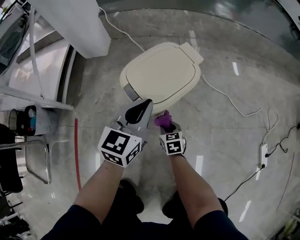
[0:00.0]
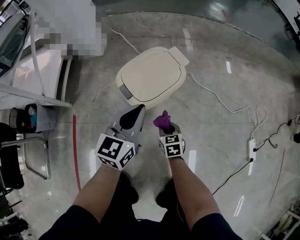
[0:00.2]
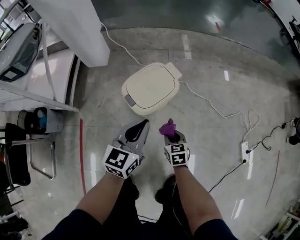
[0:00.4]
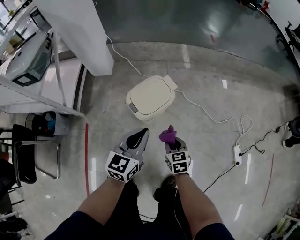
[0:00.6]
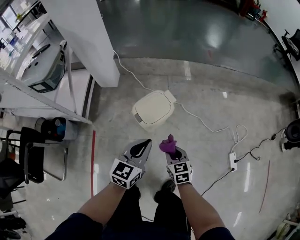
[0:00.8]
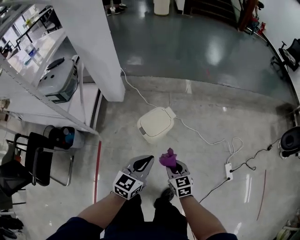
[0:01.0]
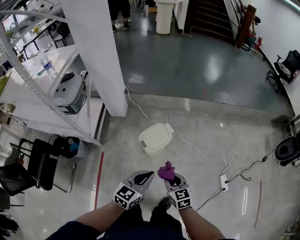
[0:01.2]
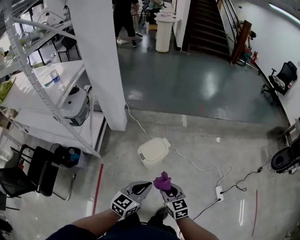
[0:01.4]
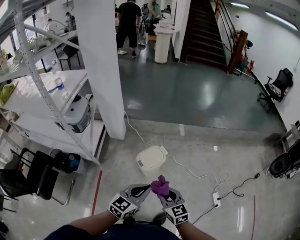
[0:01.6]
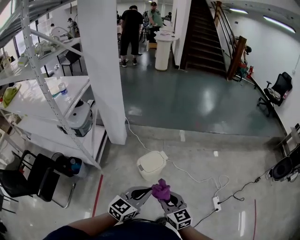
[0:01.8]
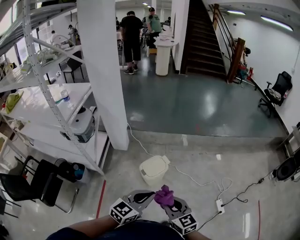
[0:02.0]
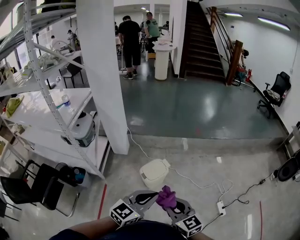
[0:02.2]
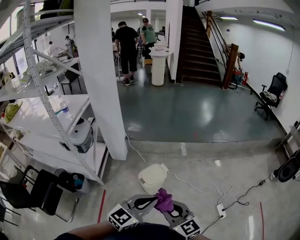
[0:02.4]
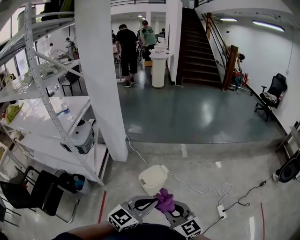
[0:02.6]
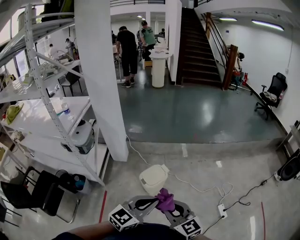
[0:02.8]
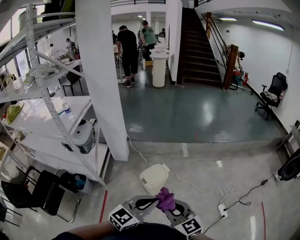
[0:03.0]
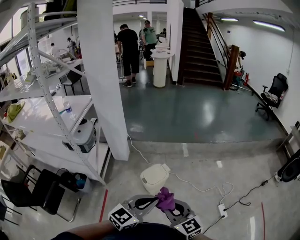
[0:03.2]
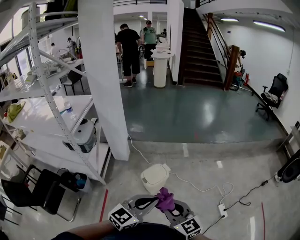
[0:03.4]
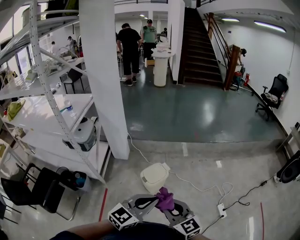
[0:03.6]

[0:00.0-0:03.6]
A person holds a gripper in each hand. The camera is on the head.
0:00.0 to 0:01.8: The left gripper moves upward and backward, roughly 70 cm. Meanwhile the right gripper is displaced upward by about 90 cm, and rotates roughly 30 degrees.
0:01.8 to 0:03.6: Both grippers travel together upward and backward, roughly 10 cm.

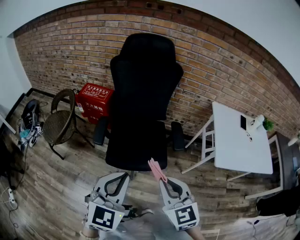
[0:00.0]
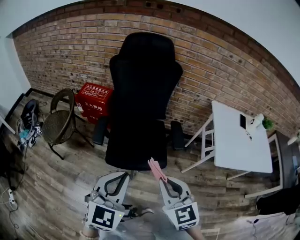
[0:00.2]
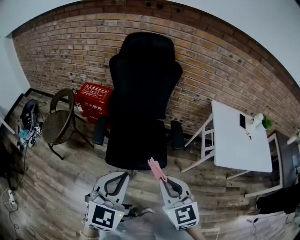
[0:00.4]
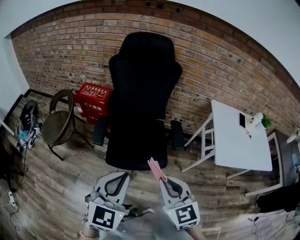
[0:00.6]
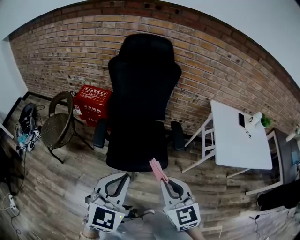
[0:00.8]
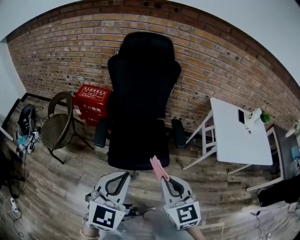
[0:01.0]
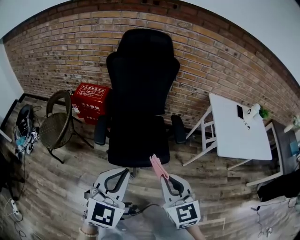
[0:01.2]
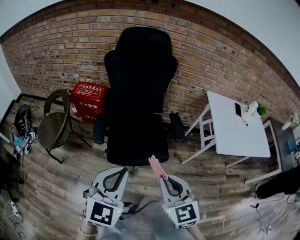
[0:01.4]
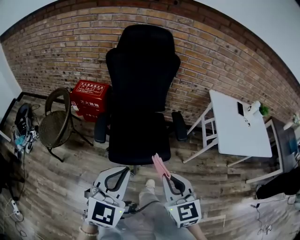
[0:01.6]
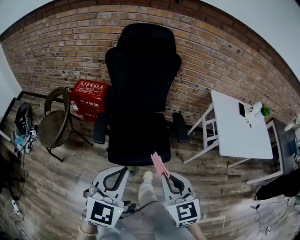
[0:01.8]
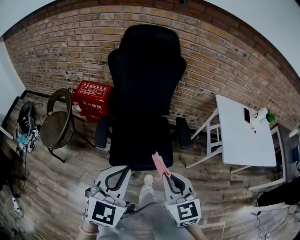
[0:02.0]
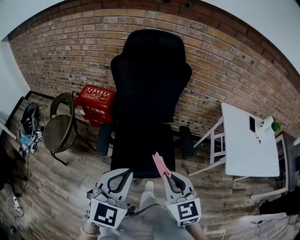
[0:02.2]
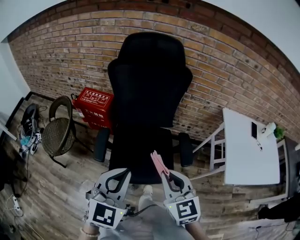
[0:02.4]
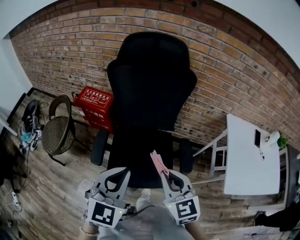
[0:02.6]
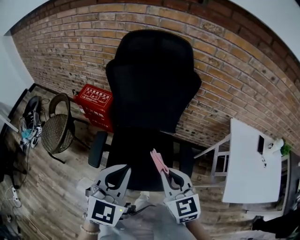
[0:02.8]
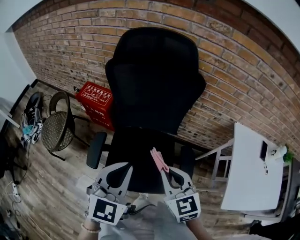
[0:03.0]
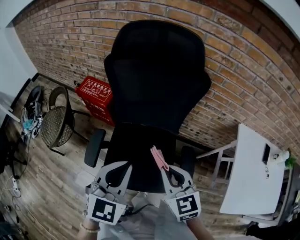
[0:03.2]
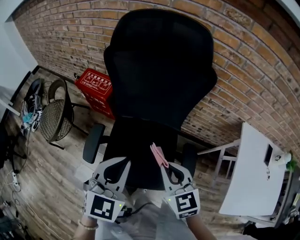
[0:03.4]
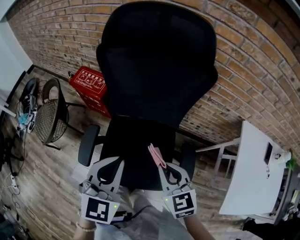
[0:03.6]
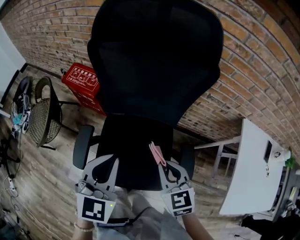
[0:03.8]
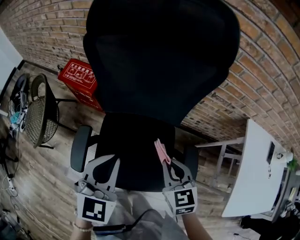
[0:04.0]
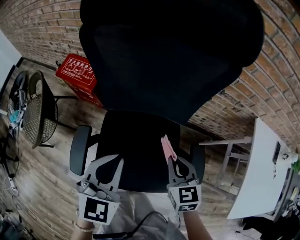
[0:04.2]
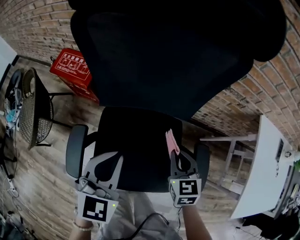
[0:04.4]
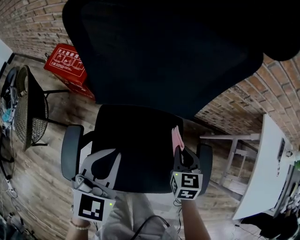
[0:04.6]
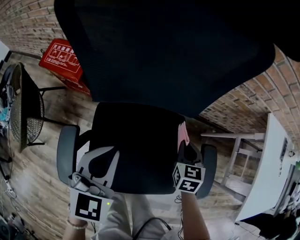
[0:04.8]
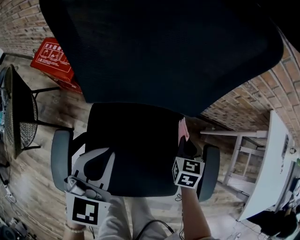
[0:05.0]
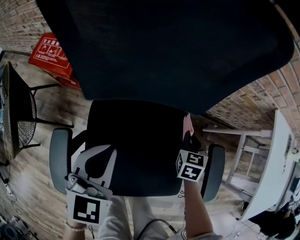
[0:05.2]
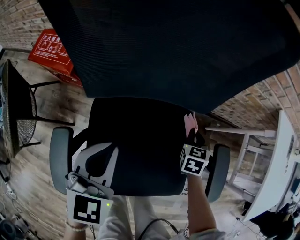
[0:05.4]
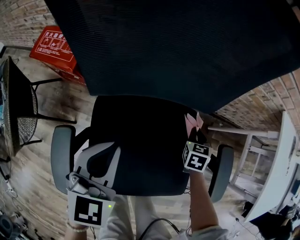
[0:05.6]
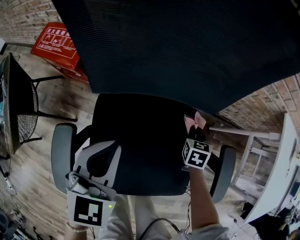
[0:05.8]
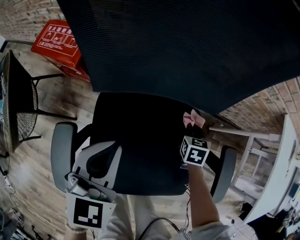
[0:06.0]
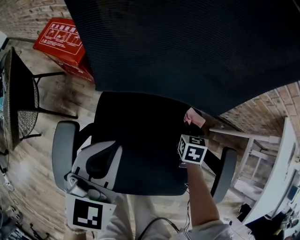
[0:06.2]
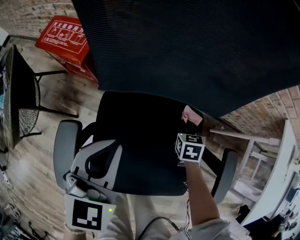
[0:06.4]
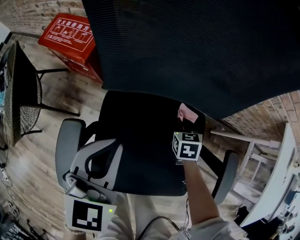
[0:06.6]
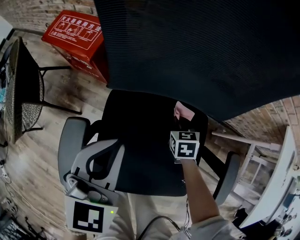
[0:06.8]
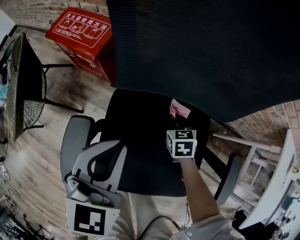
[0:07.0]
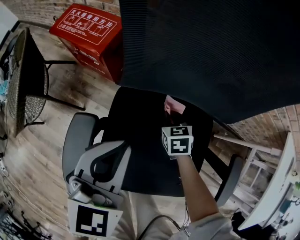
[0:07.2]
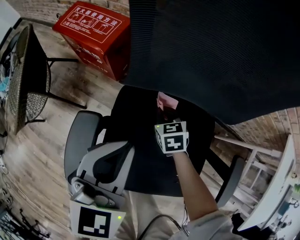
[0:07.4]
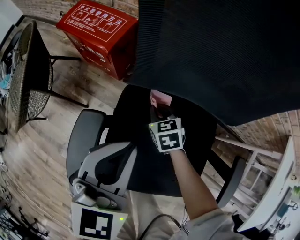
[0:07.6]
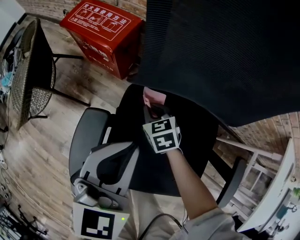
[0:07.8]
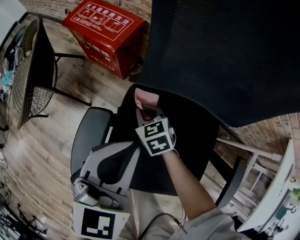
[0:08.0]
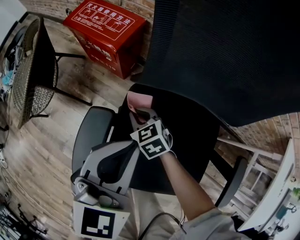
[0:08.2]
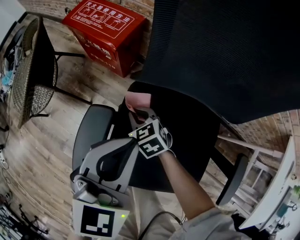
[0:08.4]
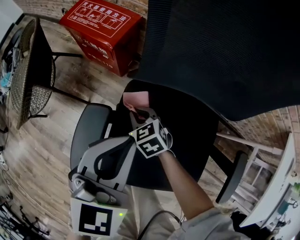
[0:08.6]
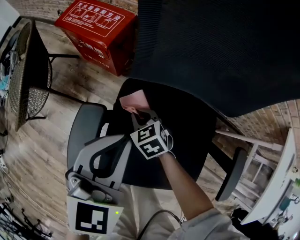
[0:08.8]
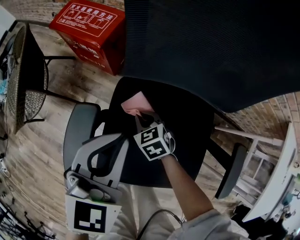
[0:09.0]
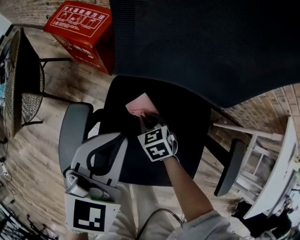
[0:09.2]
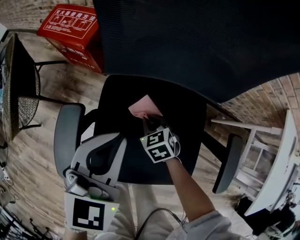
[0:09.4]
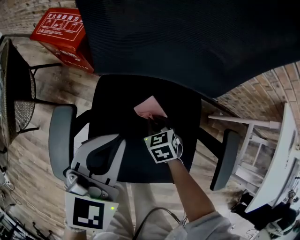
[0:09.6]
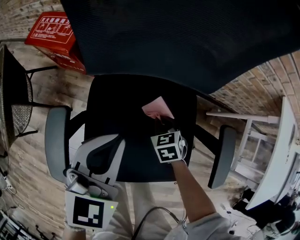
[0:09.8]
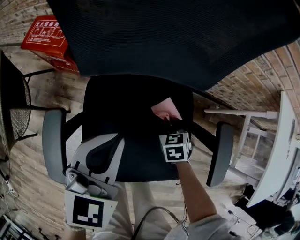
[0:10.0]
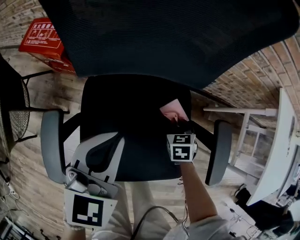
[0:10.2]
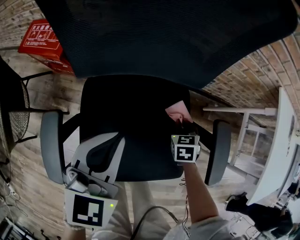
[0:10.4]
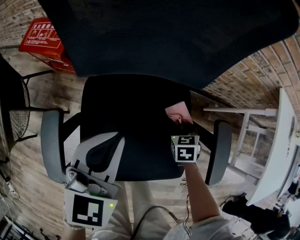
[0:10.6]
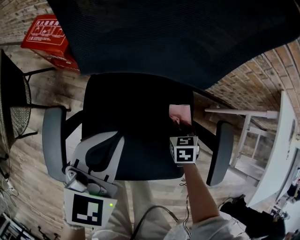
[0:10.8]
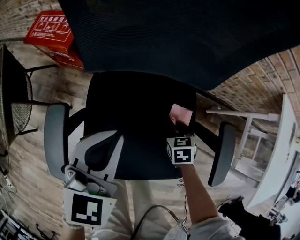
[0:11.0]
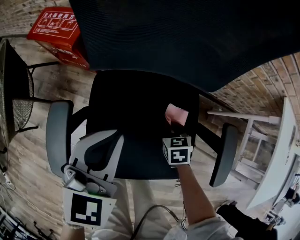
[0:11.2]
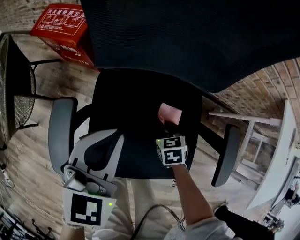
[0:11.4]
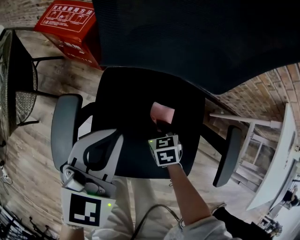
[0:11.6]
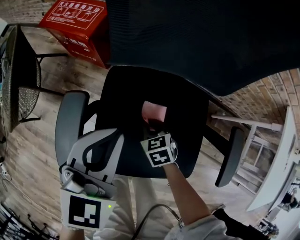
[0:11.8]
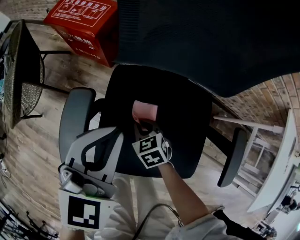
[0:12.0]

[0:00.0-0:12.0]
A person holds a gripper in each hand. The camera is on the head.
0:00.0 to 0:01.6: The grippers both shift to the left by roughly 5 cm.
0:01.6 to 0:03.0: The grippers both shift forward by roughly 35 cm.
0:03.0 to 0:04.4: Both grippers travel together downward and forward, approximately 30 cm. The right gripper swivels roughly 20 degrees.
0:04.4 to 0:06.0: The left gripper goes some 15 cm downward and to the left; the right gripper heads downward and forward, covering roughly 30 cm, and rotates approximately 30 degrees.
0:06.0 to 0:07.6: The right gripper changes place by some 30 cm, and swivels roughly 40 degrees; the left gripper ends up approximately 10 cm from where it was.
0:07.6 to 0:09.0: The right gripper shifts roughly 5 cm backward.
0:09.0 to 0:10.4: The left gripper shifts by approximately 10 cm. The right gripper shifts by roughly 35 cm, and swivels roughly 40 degrees.
0:10.4 to 0:12.0: The right gripper changes place by some 30 cm, and swivels approximately 40 degrees. Meanwhile the left gripper ends up roughly 10 cm from where it was.

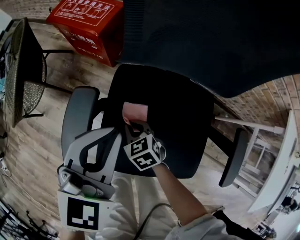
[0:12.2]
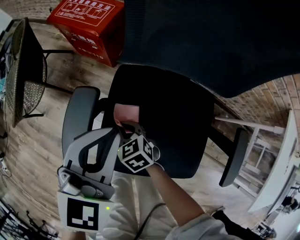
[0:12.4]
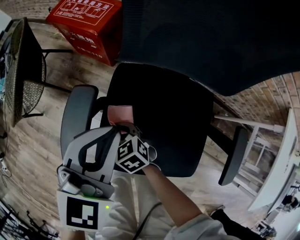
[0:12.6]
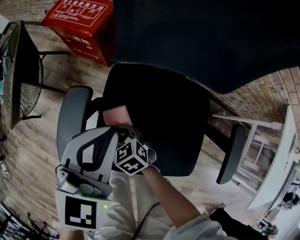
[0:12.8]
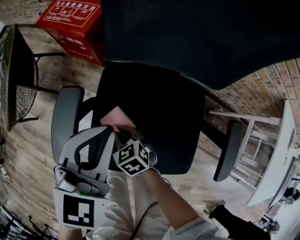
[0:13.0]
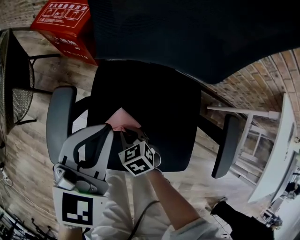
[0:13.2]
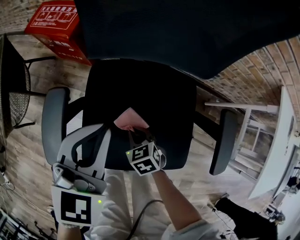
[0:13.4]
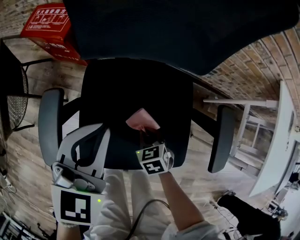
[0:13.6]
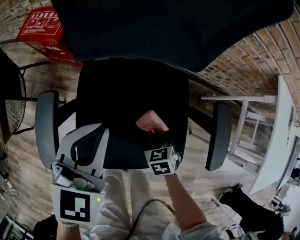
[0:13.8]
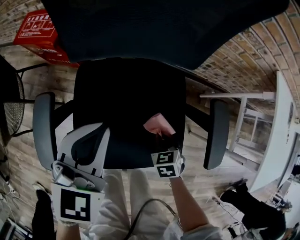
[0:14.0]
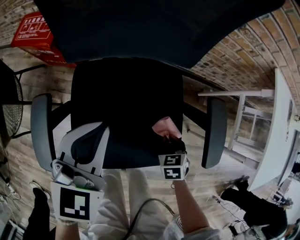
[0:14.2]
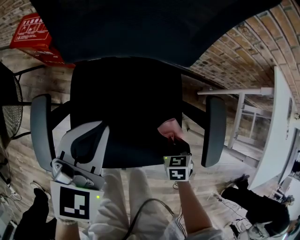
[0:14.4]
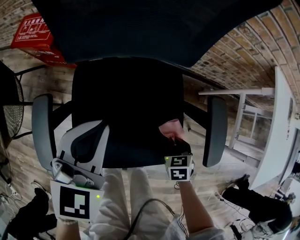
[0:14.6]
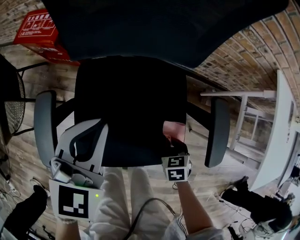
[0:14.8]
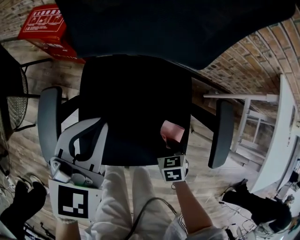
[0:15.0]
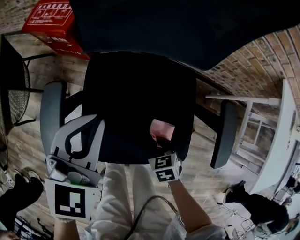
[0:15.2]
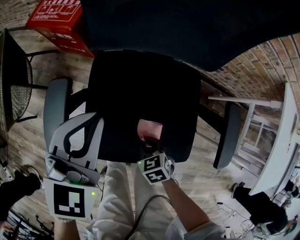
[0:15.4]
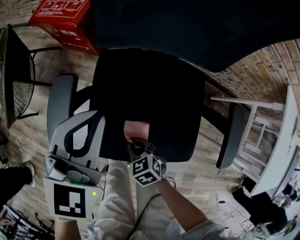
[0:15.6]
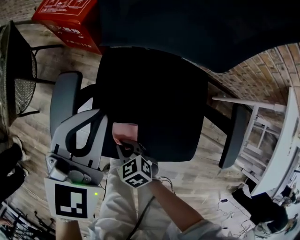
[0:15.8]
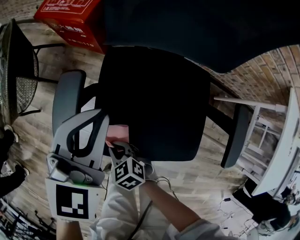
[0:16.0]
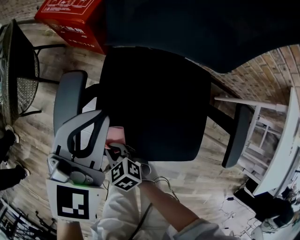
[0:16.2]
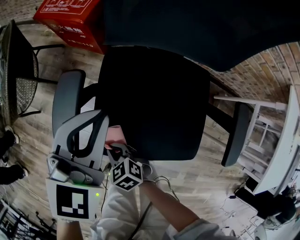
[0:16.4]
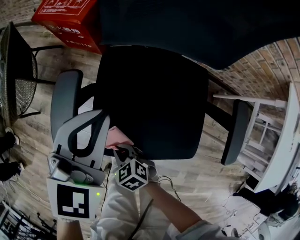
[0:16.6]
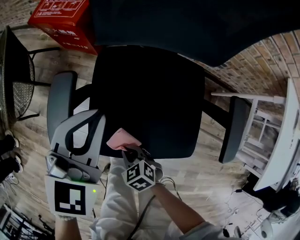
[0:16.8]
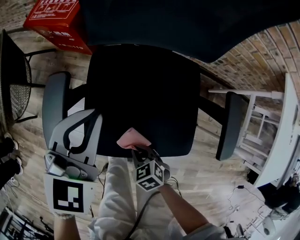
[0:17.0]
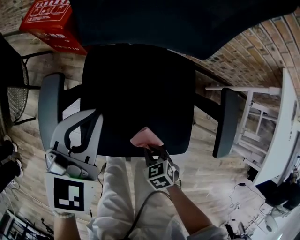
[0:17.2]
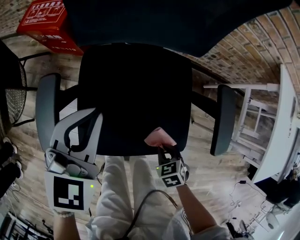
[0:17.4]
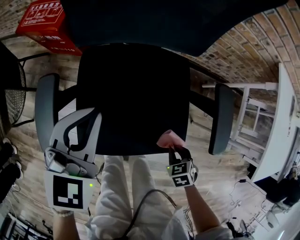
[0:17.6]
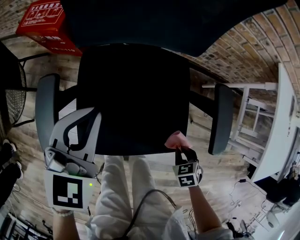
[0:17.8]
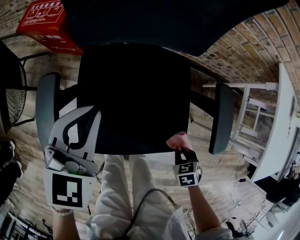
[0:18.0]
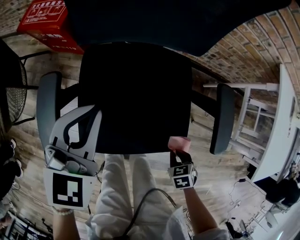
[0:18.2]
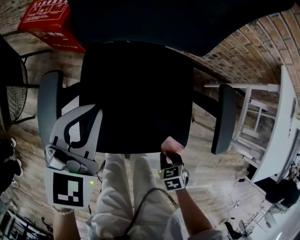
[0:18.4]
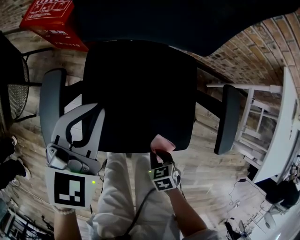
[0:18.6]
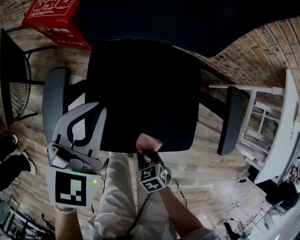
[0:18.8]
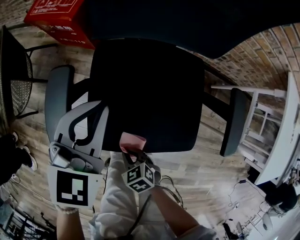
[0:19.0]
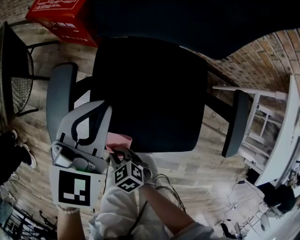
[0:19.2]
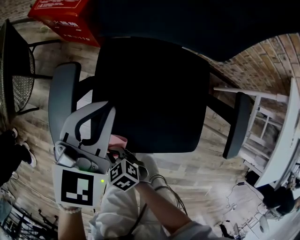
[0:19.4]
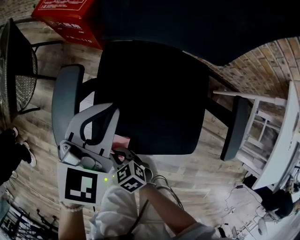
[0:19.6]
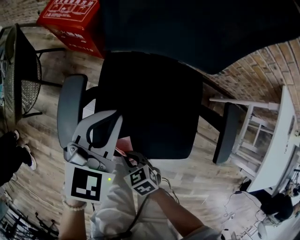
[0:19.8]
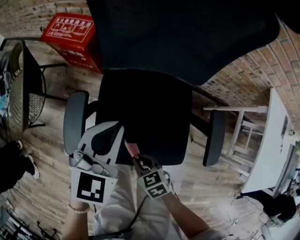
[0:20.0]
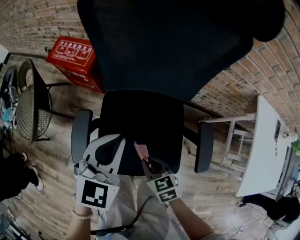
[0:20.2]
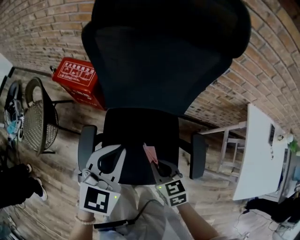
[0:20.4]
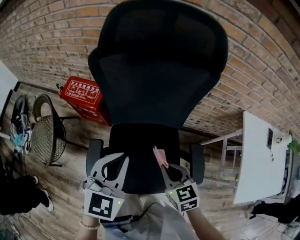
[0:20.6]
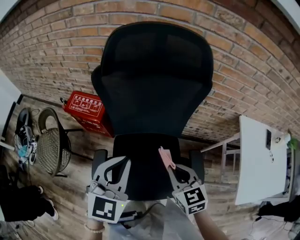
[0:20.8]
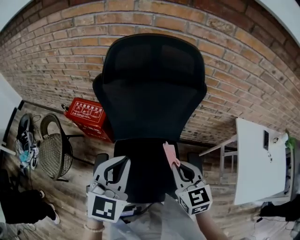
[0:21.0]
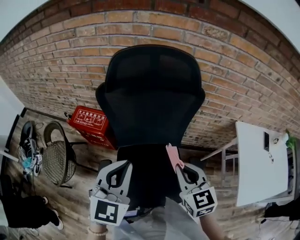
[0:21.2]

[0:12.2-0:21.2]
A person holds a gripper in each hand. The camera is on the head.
0:12.2 to 0:13.8: The right gripper moves roughly 25 cm, and turns by some 30 degrees, while the left gripper changes place by approximately 10 cm.
0:13.8 to 0:15.2: The right gripper is displaced backward by roughly 5 cm, and reaches some 10 cm to the right, then returns.
0:15.2 to 0:16.6: The right gripper moves to the left, some 20 cm, and turns by about 30 degrees.
0:16.6 to 0:18.2: The right gripper ends up approximately 30 cm from where it was, and swivels roughly 40 degrees, while the left gripper moves some 5 cm.
0:18.2 to 0:19.8: The right gripper changes place by approximately 30 cm, and rotates about 30 degrees.
0:19.8 to 0:21.2: Both grippers move upward, approximately 40 cm. The right gripper angles its fingers upward, by some 30 degrees.
